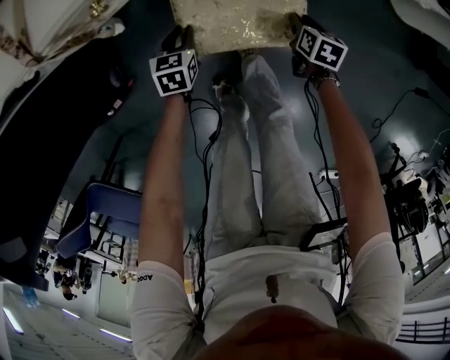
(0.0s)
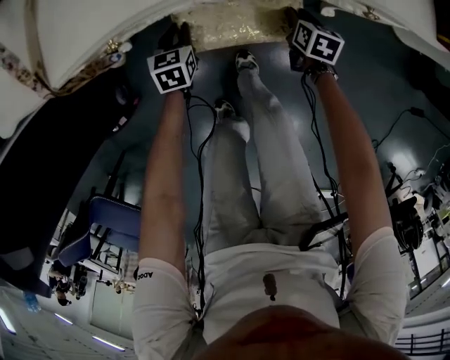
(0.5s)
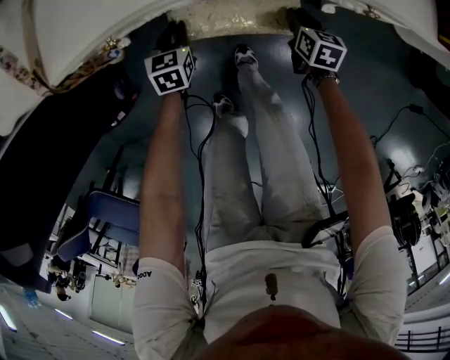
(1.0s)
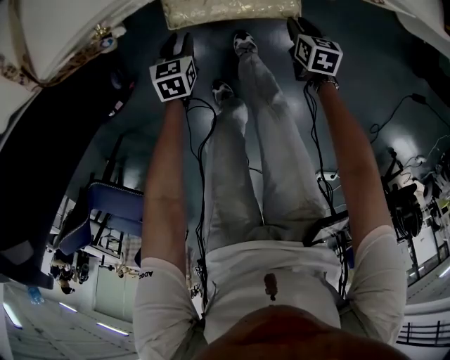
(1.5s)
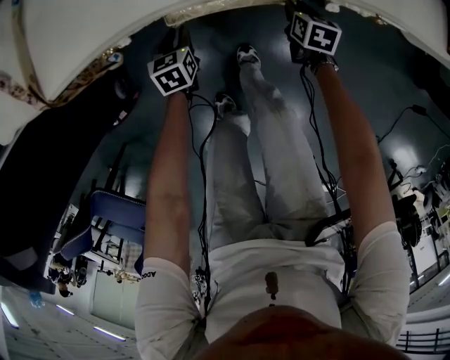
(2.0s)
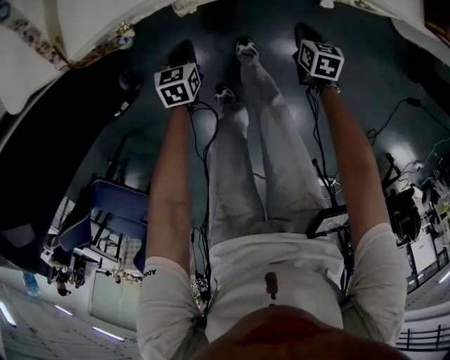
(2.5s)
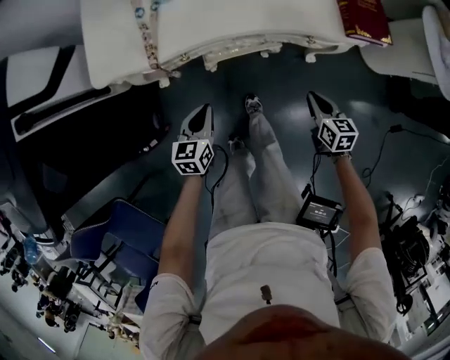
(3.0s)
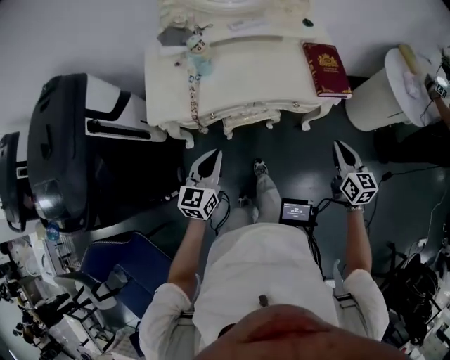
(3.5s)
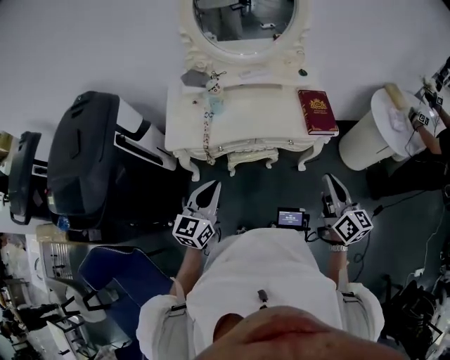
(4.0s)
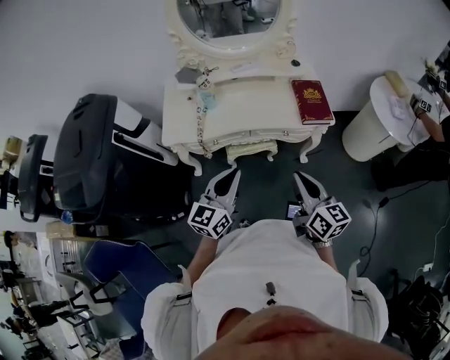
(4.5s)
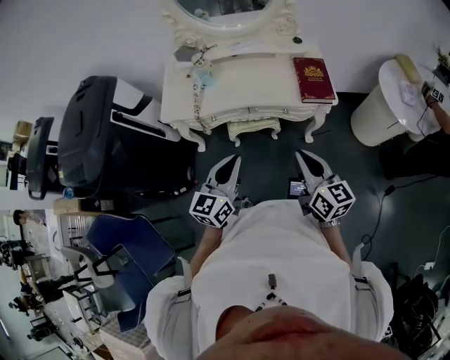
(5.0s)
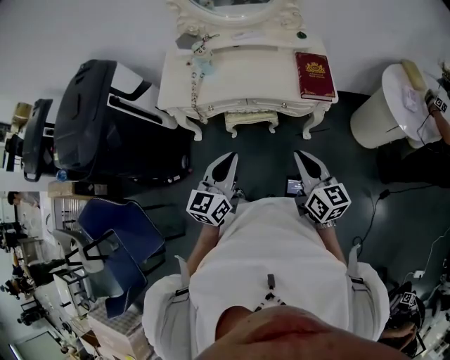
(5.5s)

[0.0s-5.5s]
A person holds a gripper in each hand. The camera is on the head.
0.0s to 2.0s: The right gripper goes forward and backward, about 15 cm each way, reversing 2 times; the left gripper moves forward and backward over some 10 cm, changing direction 2 times.
2.0s to 3.5s: The left gripper shifts roughly 60 cm upward, points its fingers approximately 40 degrees further upward, and closes its fingers, while the right gripper is displaced upward and backward by approximately 60 cm, tilts its fingers about 40 degrees upward, and closes its fingers.
3.5s to 5.5s: The right gripper shifts roughly 20 cm upward and backward, and rotates approximately 20 degrees. Meanwhile the left gripper heads to the right, upward and backward, covering approximately 25 cm.

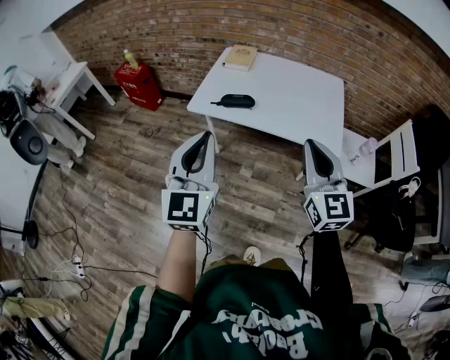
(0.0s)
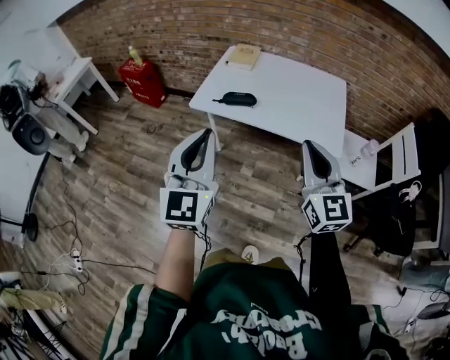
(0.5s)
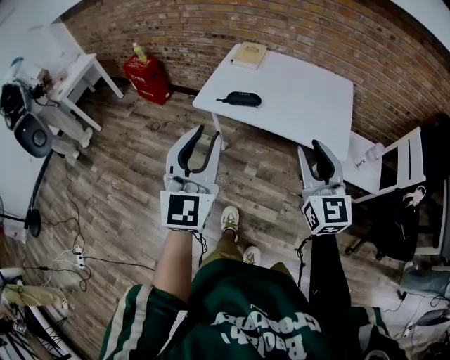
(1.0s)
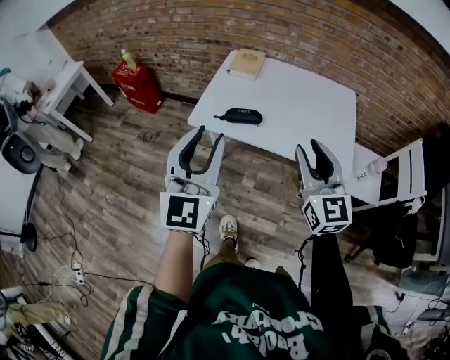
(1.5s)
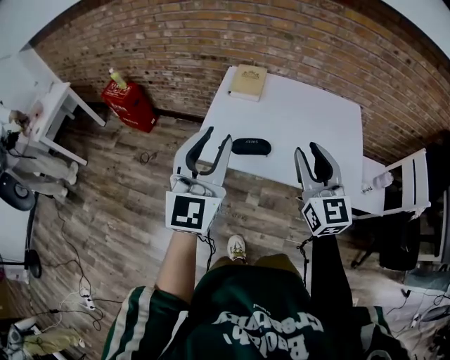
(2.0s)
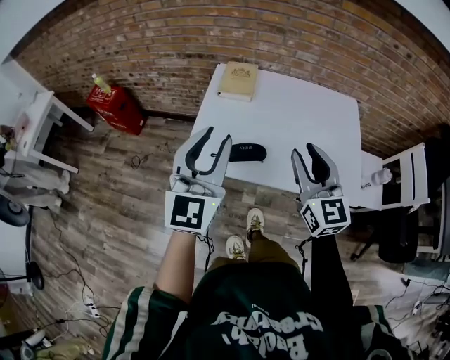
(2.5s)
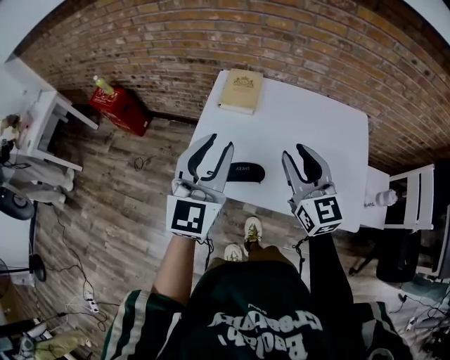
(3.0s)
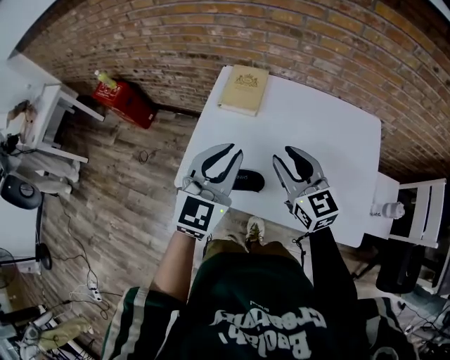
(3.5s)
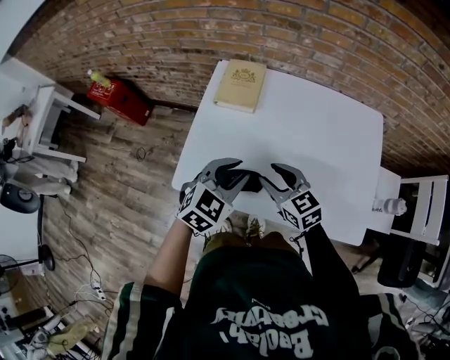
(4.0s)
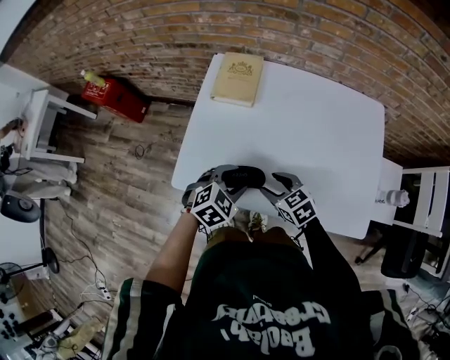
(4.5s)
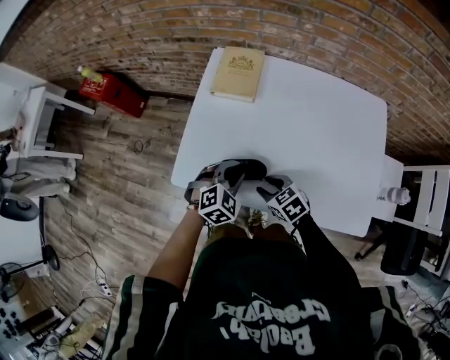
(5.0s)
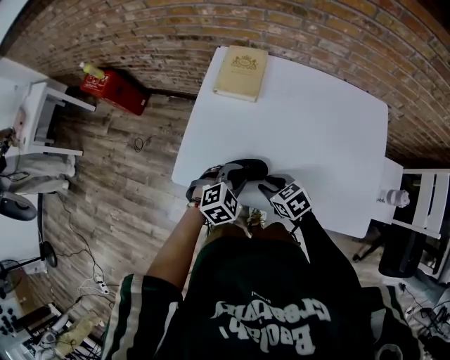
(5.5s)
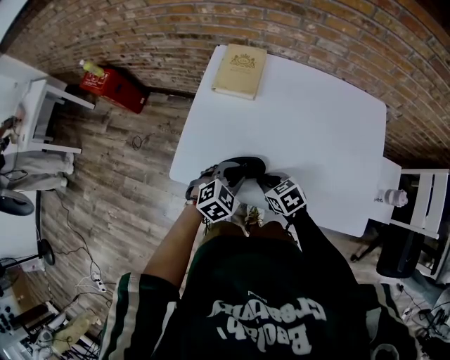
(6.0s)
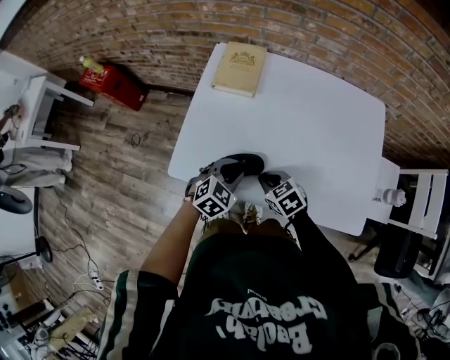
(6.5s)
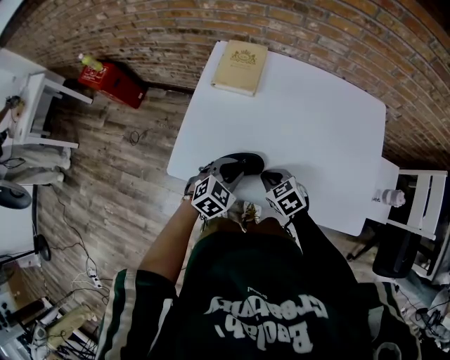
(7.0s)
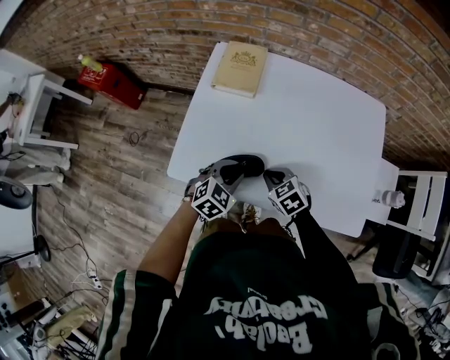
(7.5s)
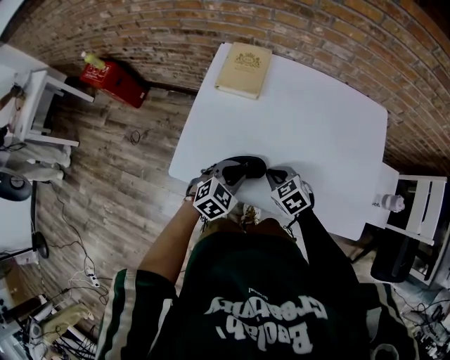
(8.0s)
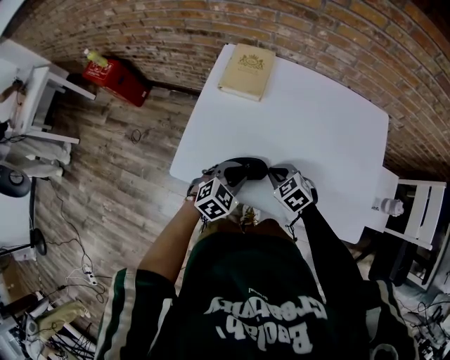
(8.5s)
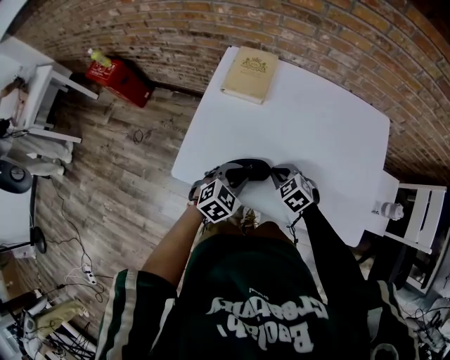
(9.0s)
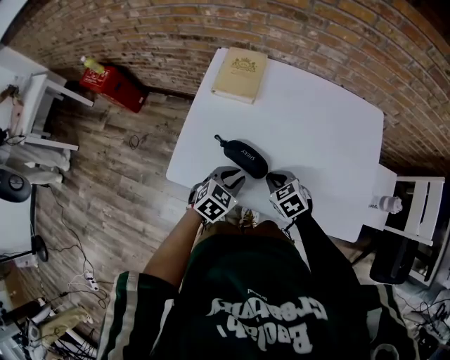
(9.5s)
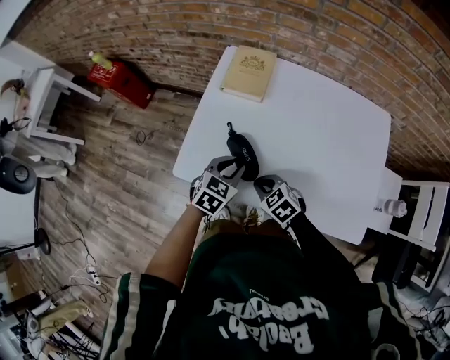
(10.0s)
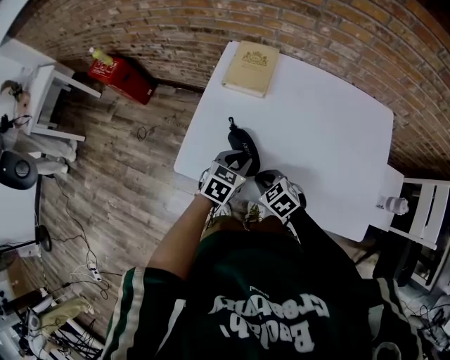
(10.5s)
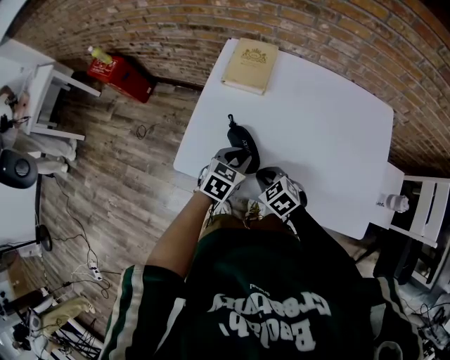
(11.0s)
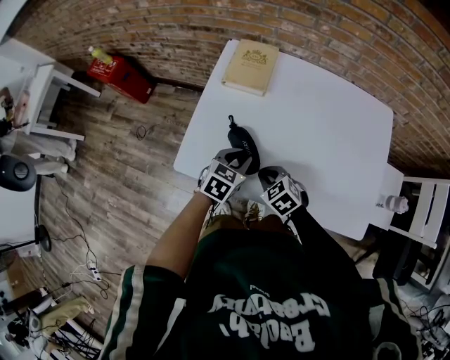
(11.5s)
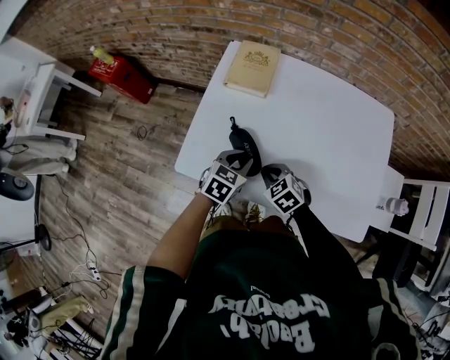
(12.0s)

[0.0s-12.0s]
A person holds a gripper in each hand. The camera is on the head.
0.0s to 2.0s: The two grippers go roughly 25 cm forward. The left gripper opens up, while the right gripper opens its fingers.
2.0s to 4.0s: The left gripper heads downward, forward and to the right, covering approximately 35 cm, and tips its fingers downward by some 40 degrees. Meanwhile the right gripper heads downward and forward, covering about 30 cm, and changes its angle by approximately 40 degrees.
4.0s to 6.0s: Both grippers travel together downward, about 15 cm. The right gripper rotates some 30 degrees, and closes up.
6.0s to 8.0s: The grippers move only a little.
8.0s to 10.0s: The right gripper ends up some 5 cm from where it was.
10.0s to 12.0s: The grippers move only a little.

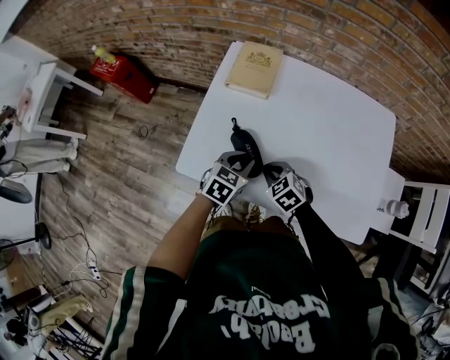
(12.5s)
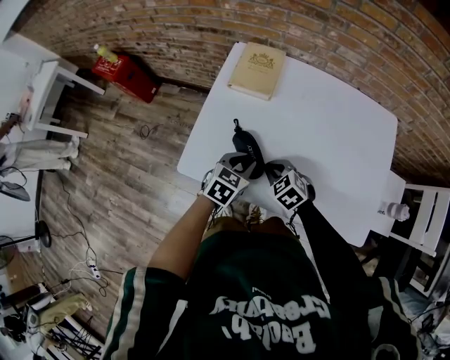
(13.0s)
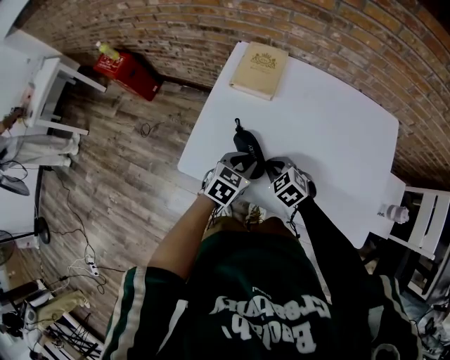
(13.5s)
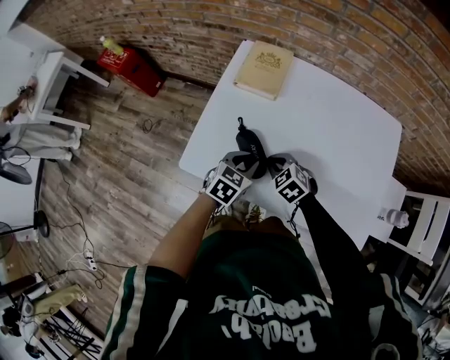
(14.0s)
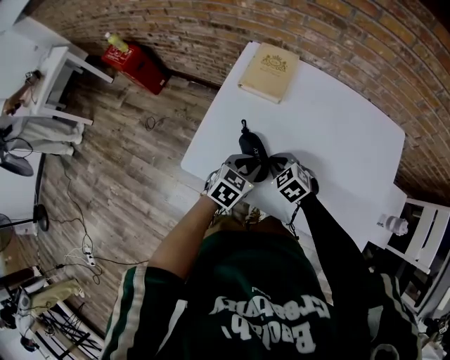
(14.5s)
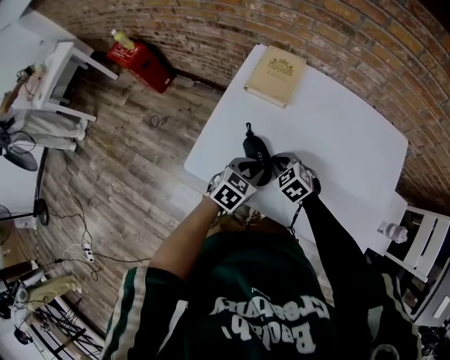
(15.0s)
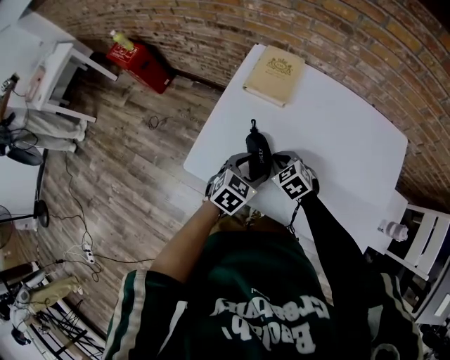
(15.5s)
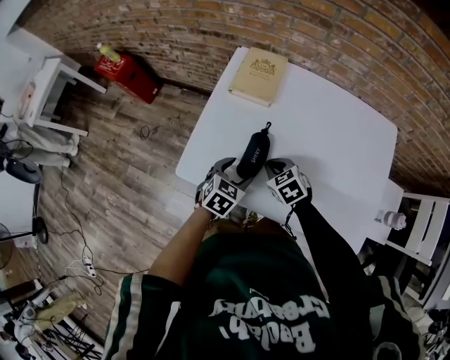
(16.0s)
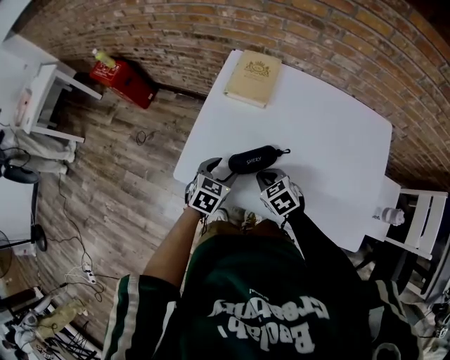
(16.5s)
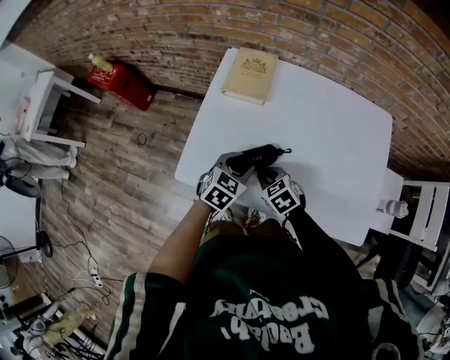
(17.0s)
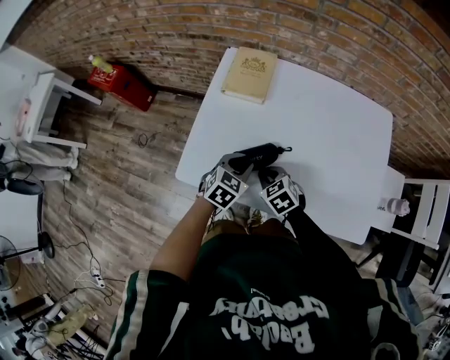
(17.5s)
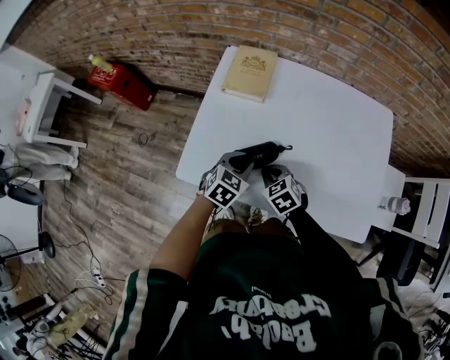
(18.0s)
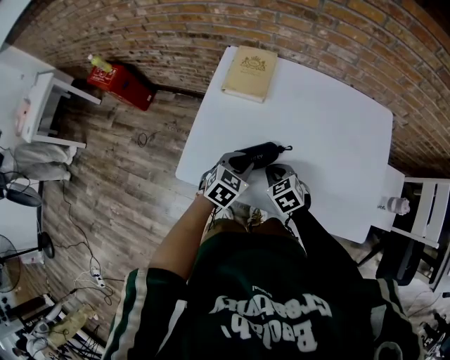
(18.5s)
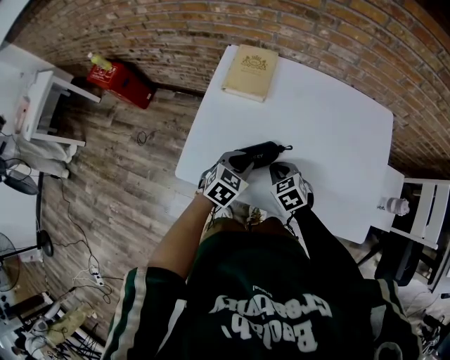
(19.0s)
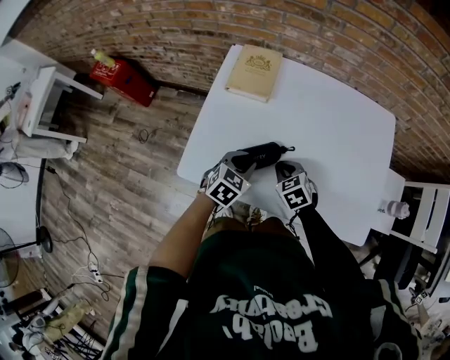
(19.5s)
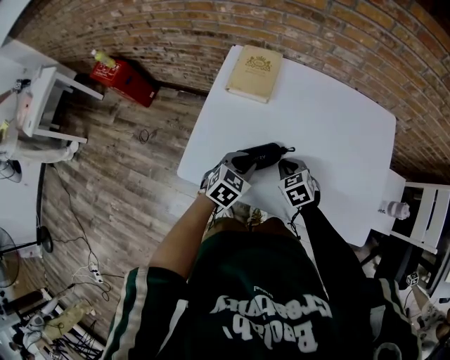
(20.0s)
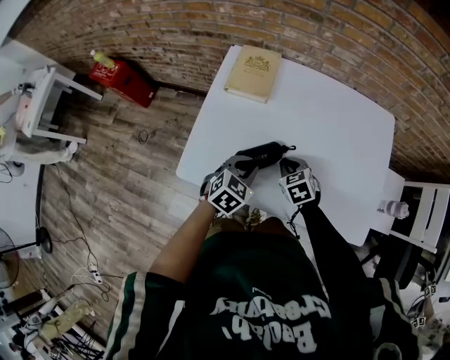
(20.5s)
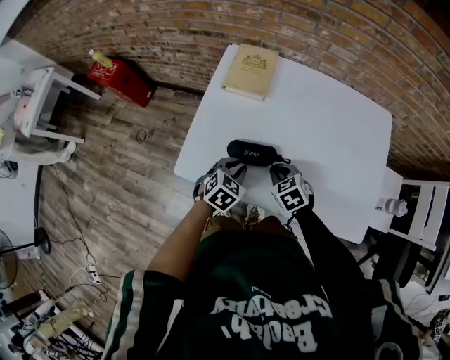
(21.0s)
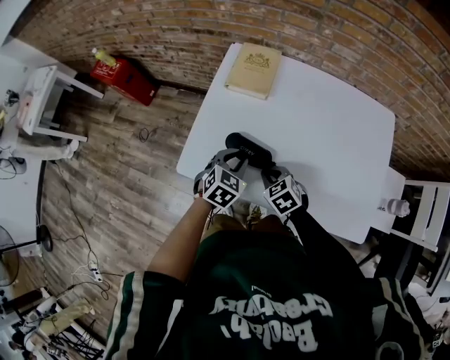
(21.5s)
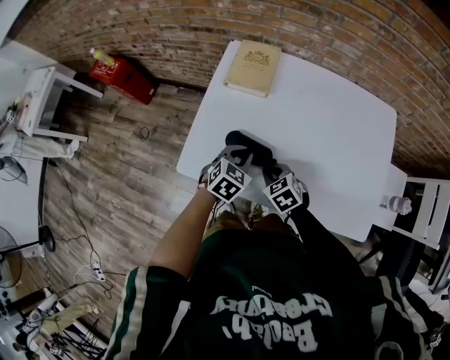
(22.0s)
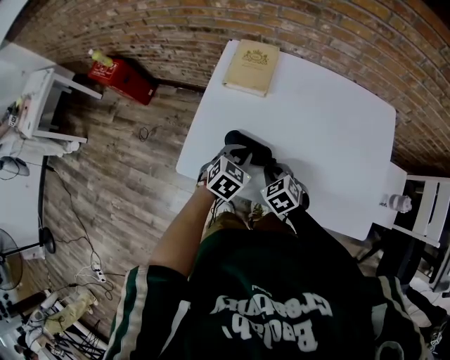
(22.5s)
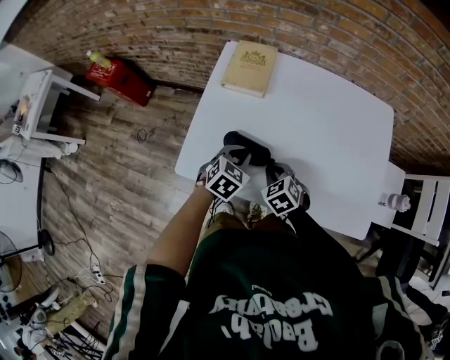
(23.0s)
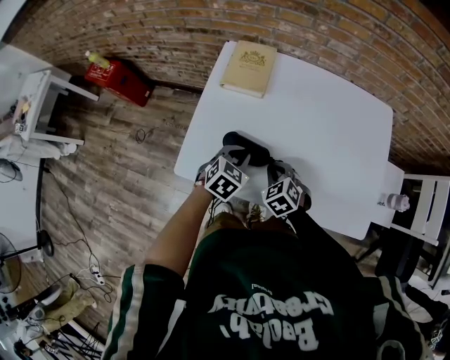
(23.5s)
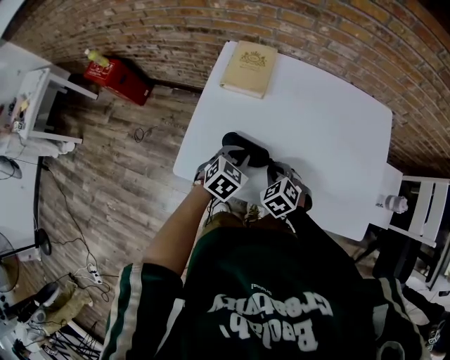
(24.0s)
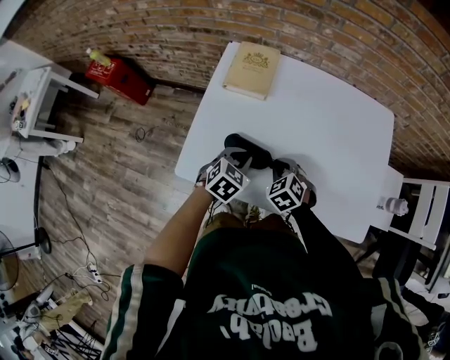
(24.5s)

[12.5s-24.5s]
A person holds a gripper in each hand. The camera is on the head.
12.5s to 14.5s: The grippers make only small movements.
14.5s to 16.5s: The left gripper shifts about 5 cm to the left, and opens its fingers.
16.5s to 18.5s: The left gripper travels to the right by approximately 5 cm, and closes.
18.5s to 20.5s: The right gripper ends up roughly 5 cm from where it was.
20.5s to 22.5s: The right gripper moves to the left, approximately 5 cm.
22.5s to 24.5s: The grippers make only small movements.
